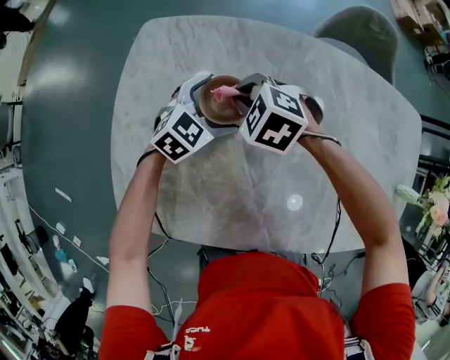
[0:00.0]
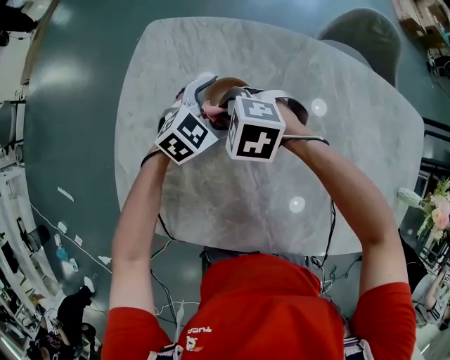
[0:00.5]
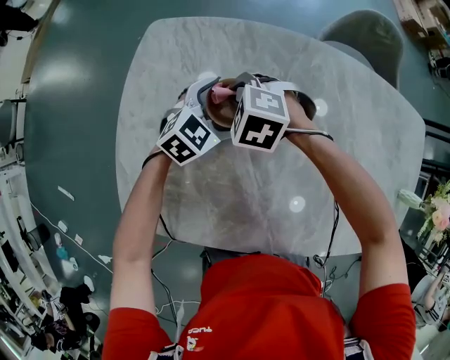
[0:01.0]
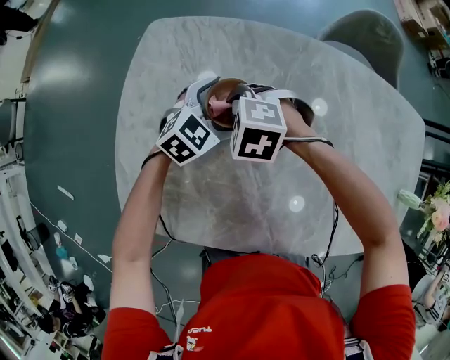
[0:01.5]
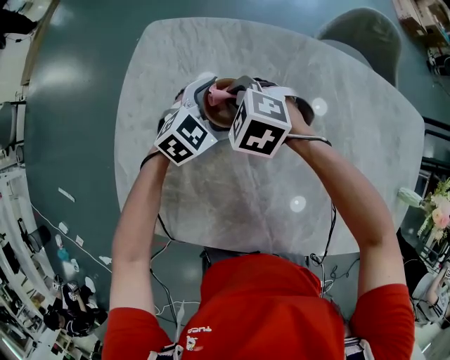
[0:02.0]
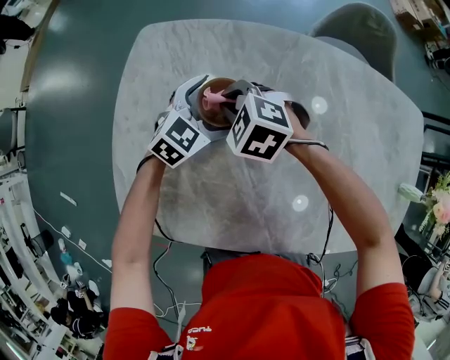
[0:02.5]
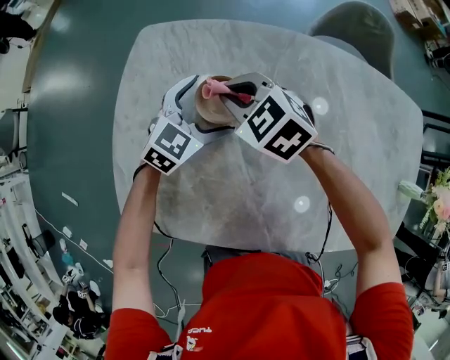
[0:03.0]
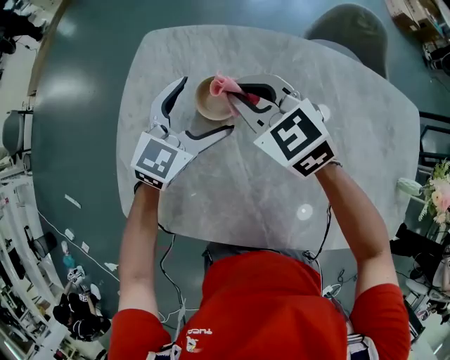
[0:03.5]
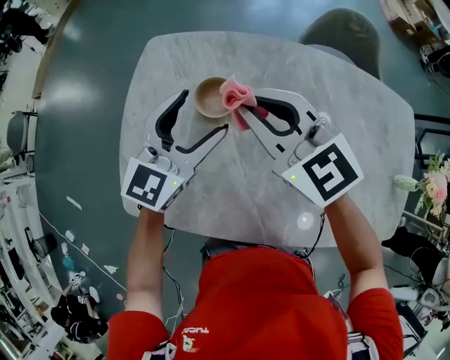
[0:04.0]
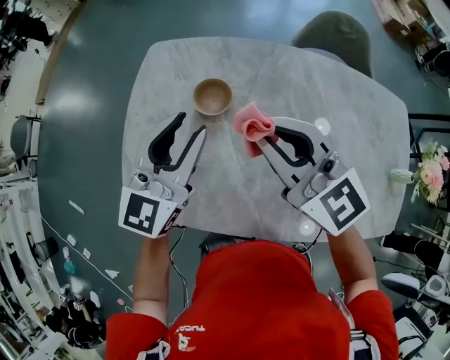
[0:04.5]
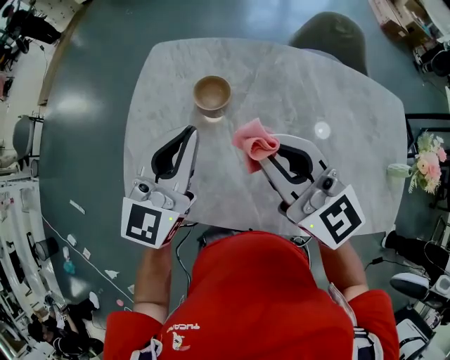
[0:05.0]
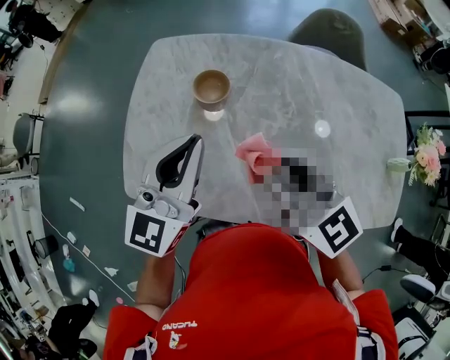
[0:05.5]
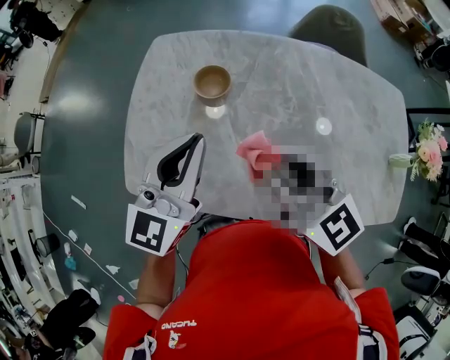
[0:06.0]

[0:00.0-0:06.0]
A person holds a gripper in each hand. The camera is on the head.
0:00.0 to 0:02.0: The grippers make only small movements.
0:02.0 to 0:04.0: Both grippers travel together upward, approximately 20 cm. The left gripper tilts its fingers about 30 degrees upward; the right gripper angles its fingers upward, by roughly 50 degrees.
0:04.0 to 0:06.0: The right gripper heads backward, covering roughly 20 cm. Meanwhile the left gripper is displaced backward and upward by some 15 cm, and closes up.

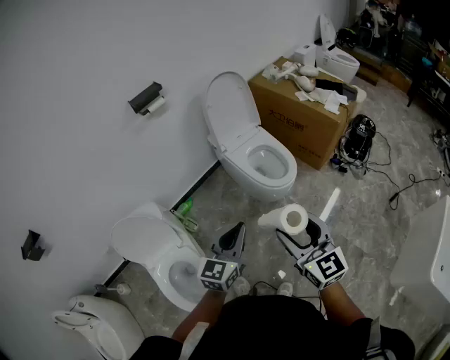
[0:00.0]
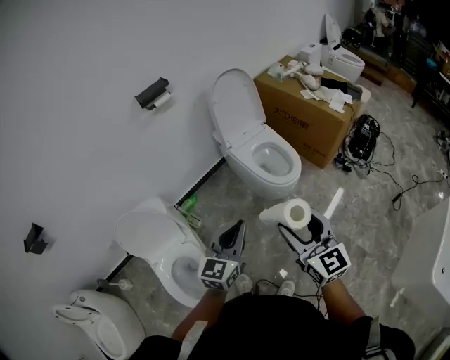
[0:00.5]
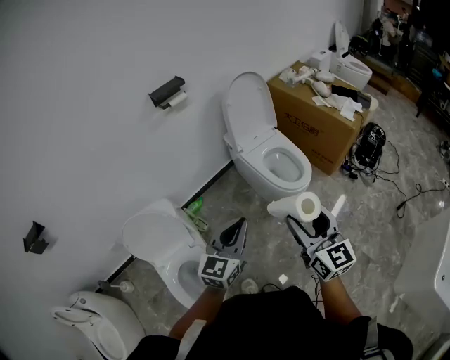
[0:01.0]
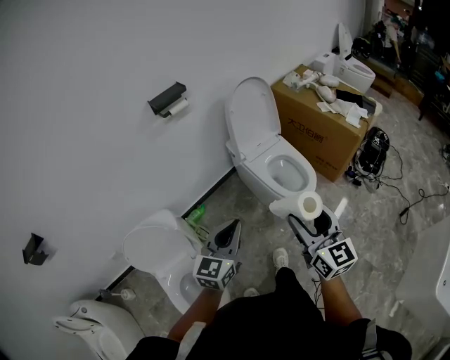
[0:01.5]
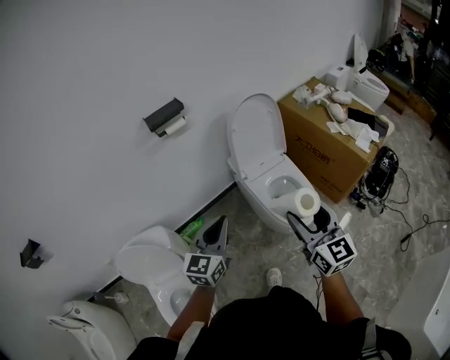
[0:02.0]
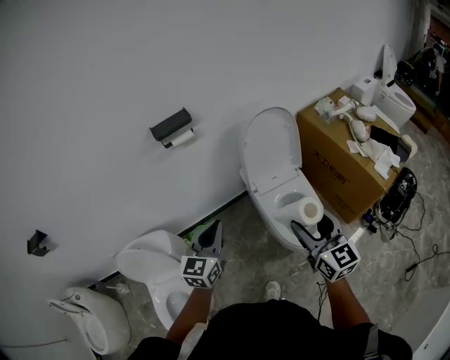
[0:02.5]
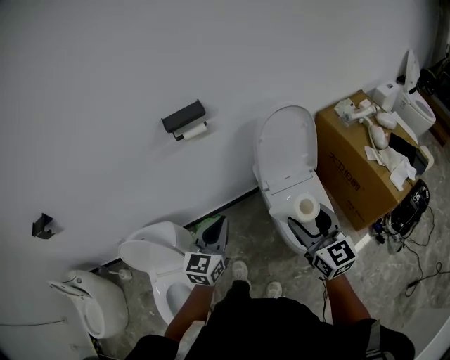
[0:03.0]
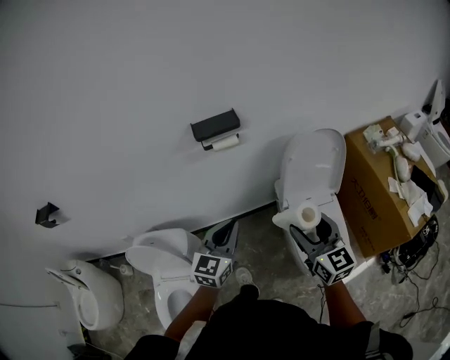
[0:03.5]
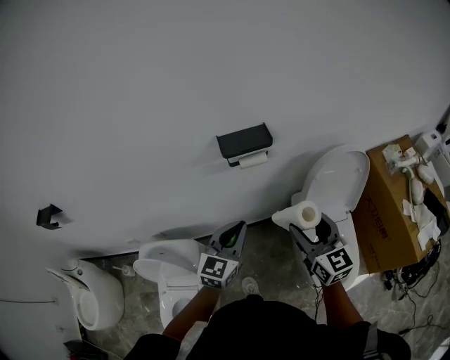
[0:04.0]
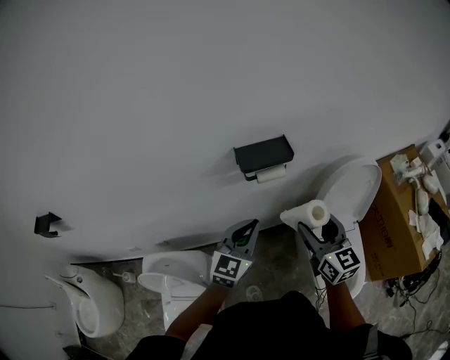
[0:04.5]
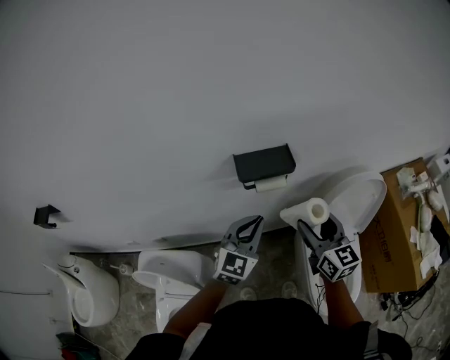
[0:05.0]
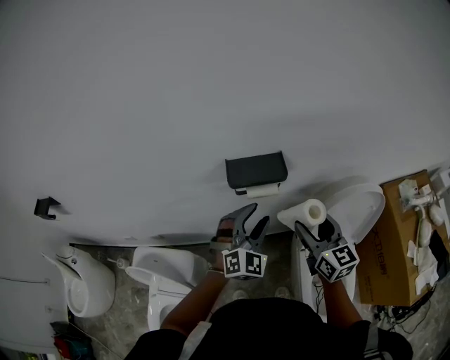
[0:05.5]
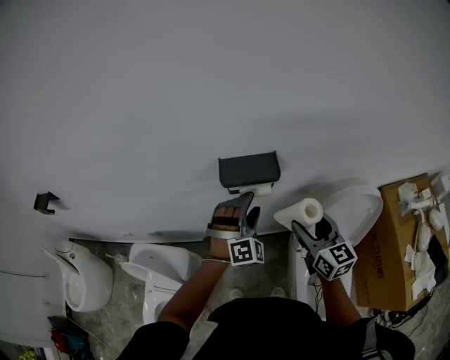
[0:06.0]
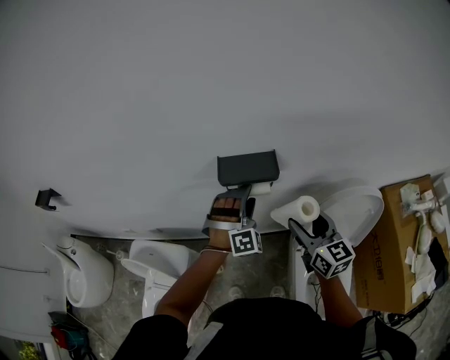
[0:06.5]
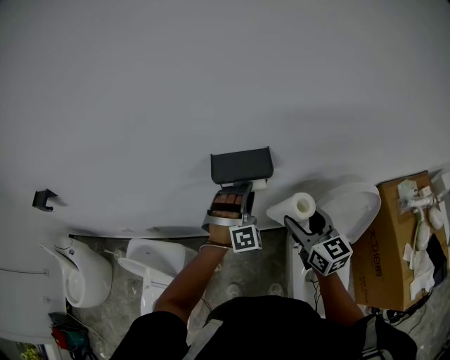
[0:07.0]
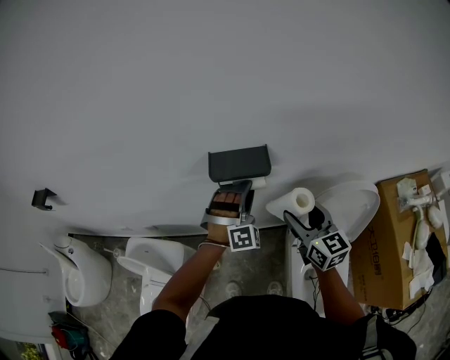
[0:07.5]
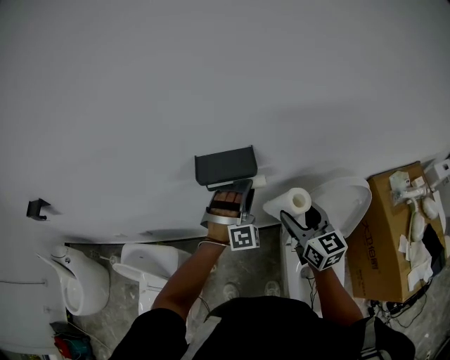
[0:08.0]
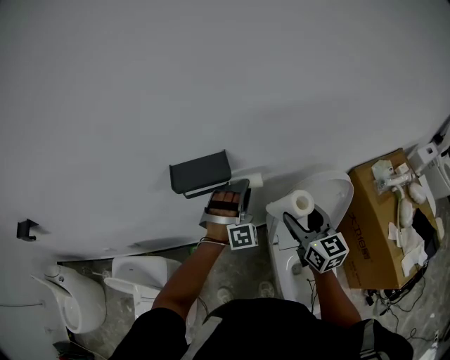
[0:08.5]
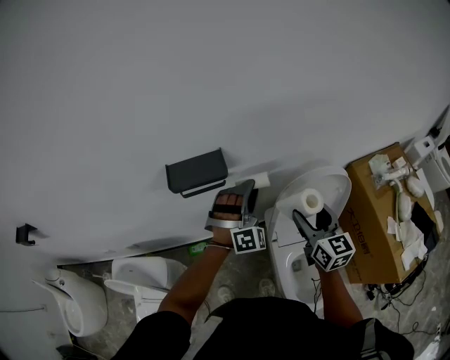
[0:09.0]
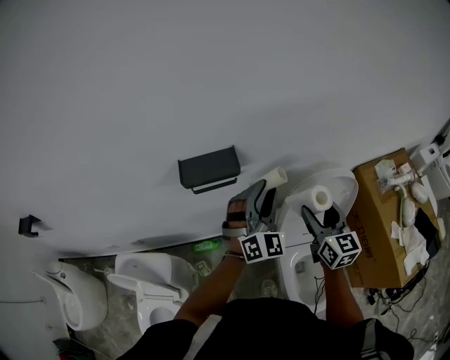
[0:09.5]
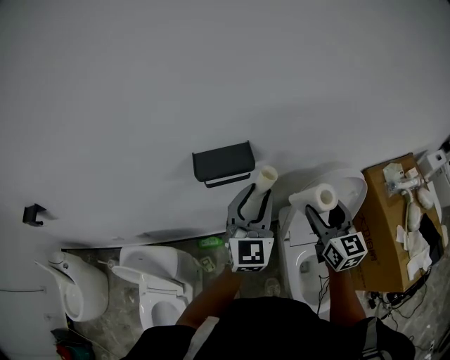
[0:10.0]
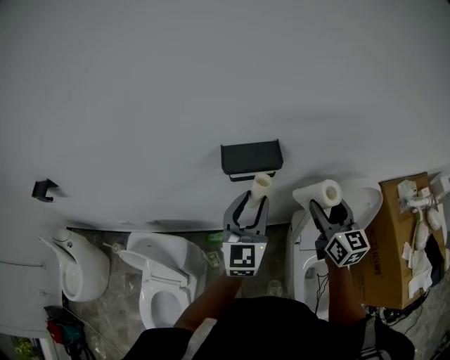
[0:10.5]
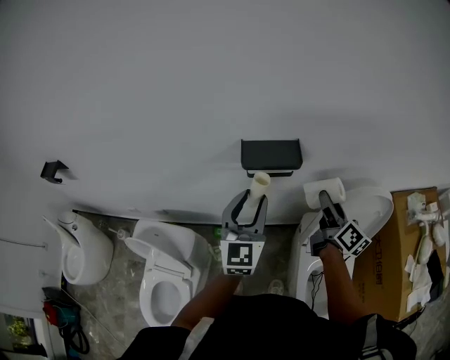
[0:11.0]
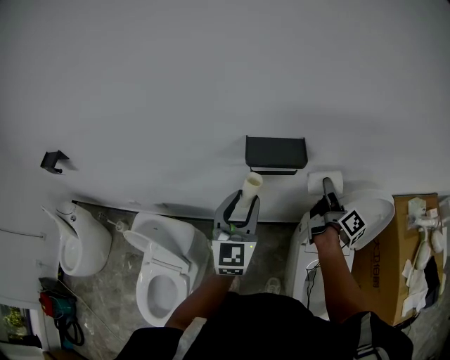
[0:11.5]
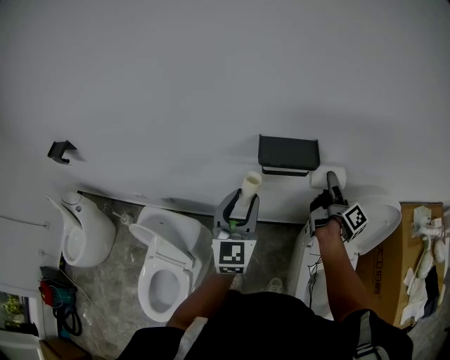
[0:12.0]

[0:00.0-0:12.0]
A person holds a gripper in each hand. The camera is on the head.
0:00.0 to 0:02.0: The left gripper shifts some 25 cm forward and to the left; the right gripper moves forward, approximately 25 cm.
0:02.0 to 0:04.0: The right gripper goes about 35 cm forward and to the left, and turns by some 30 degrees, while the left gripper travels forward by approximately 25 cm.
0:04.0 to 0:06.0: Both grippers move forward, about 15 cm. The left gripper rolls clockwise, seen from behind, by approximately 60 degrees, and opens its fingers.
0:06.0 to 0:08.0: The left gripper is displaced to the right by approximately 5 cm, and closes.
0:08.0 to 0:10.0: The right gripper goes about 5 cm to the right. Meanwhile the left gripper shifts roughly 15 cm upward and backward, and twists about 70 degrees counterclockwise, seen from behind.
0:10.0 to 0:12.0: The right gripper travels forward and to the left by approximately 15 cm, and rolls clockwise, seen from behind, by some 70 degrees; the left gripper is displaced to the left by about 20 cm, and changes its angle by roughly 20 degrees.

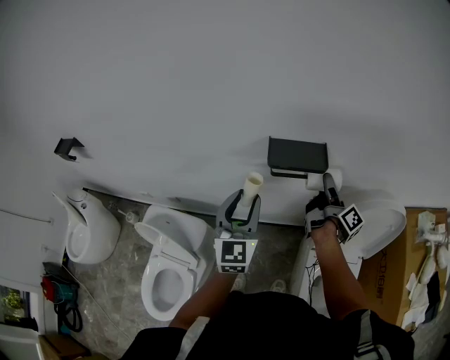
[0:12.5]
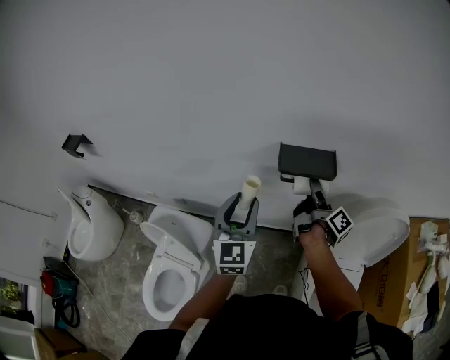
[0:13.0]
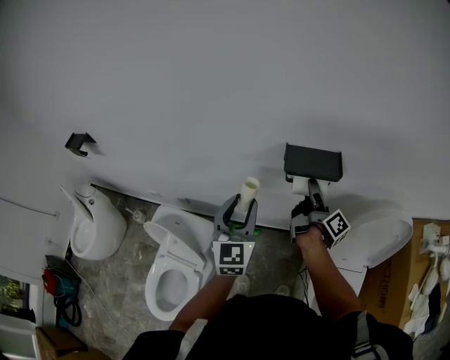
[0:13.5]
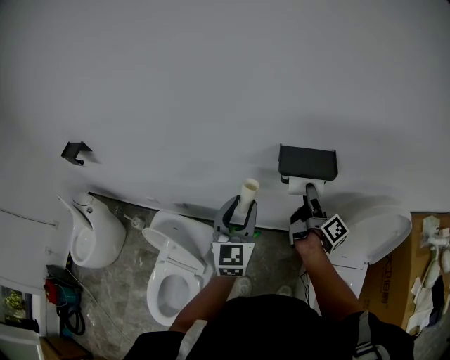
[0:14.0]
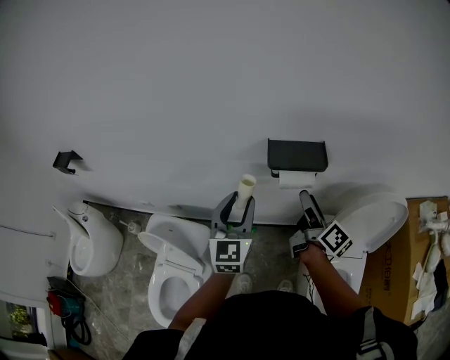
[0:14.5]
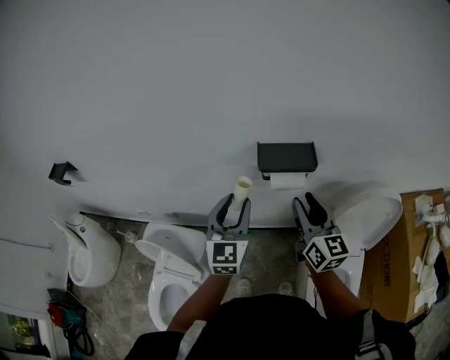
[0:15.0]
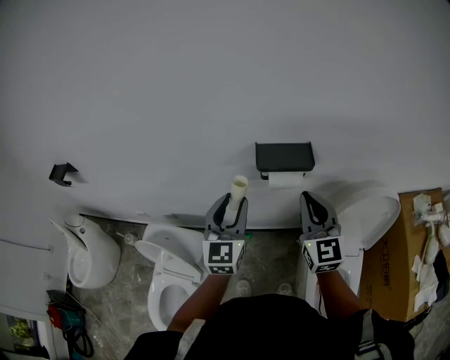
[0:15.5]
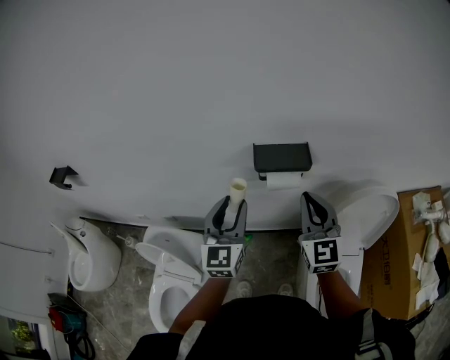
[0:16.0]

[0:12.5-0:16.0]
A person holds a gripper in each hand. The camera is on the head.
0:12.5 to 0:14.5: The right gripper is displaced to the left and backward by some 10 cm, and swivels approximately 20 degrees.
0:14.5 to 0:16.0: The right gripper goes about 10 cm upward, rotates around the line of its fingers by some 70 degrees, counterclockwise from behind, and closes up.

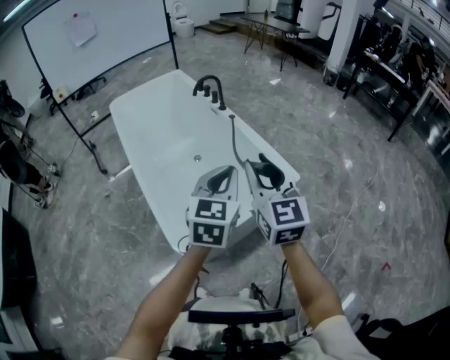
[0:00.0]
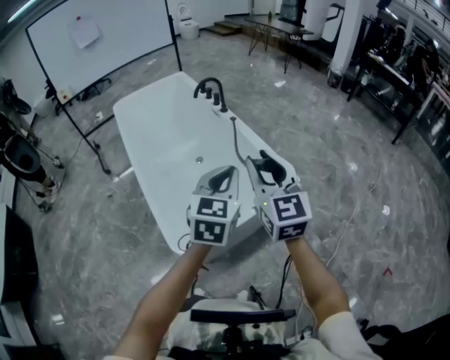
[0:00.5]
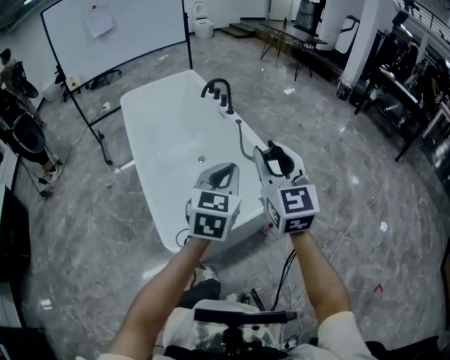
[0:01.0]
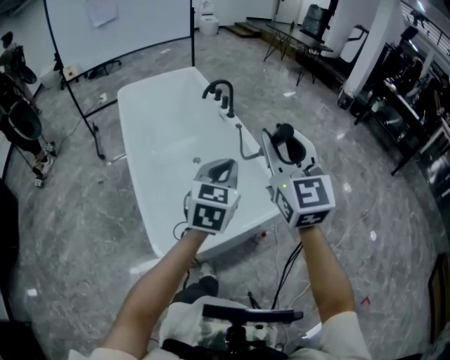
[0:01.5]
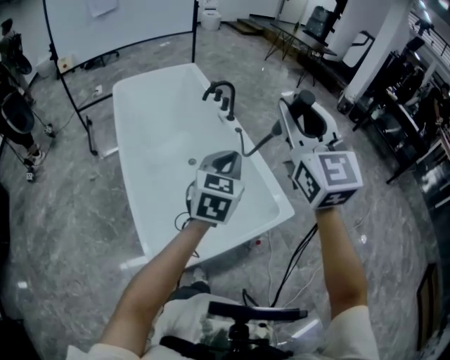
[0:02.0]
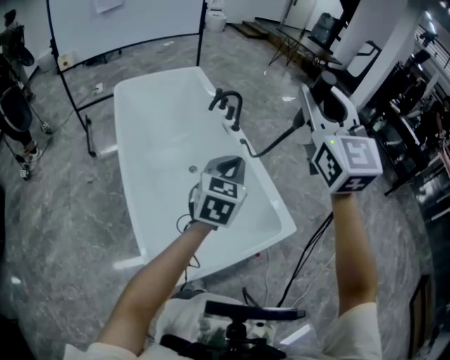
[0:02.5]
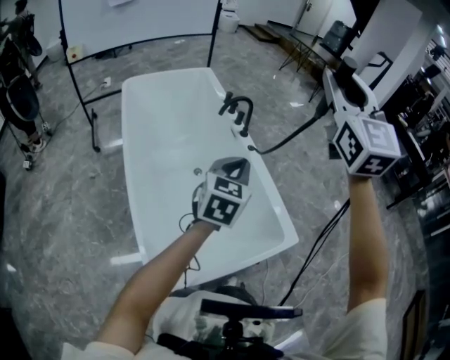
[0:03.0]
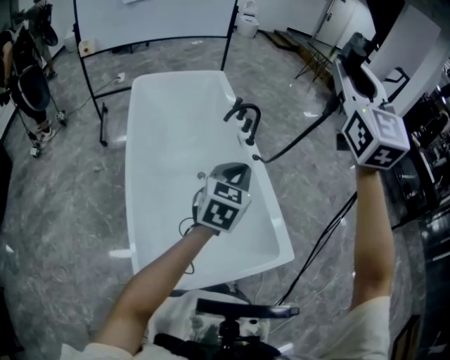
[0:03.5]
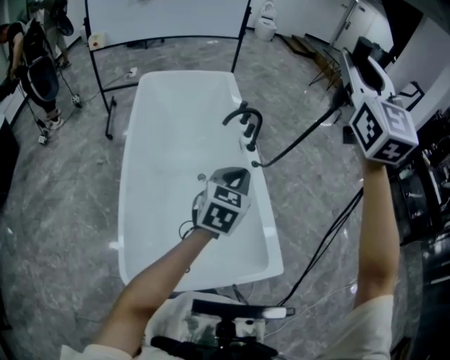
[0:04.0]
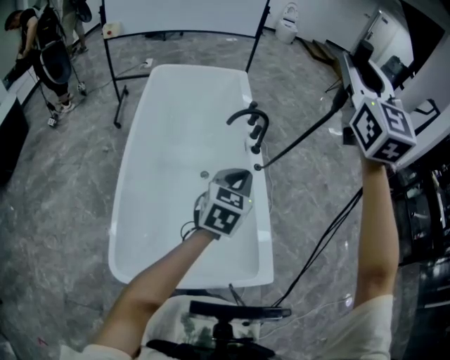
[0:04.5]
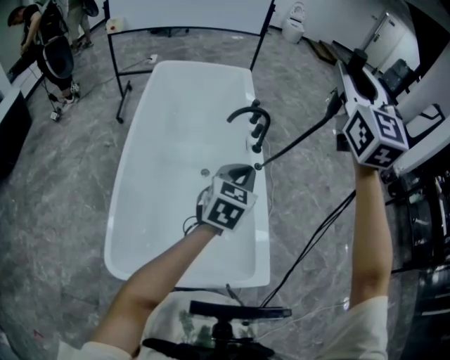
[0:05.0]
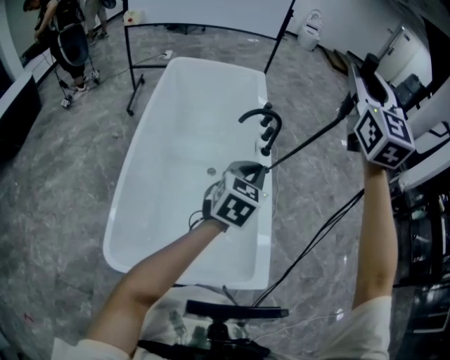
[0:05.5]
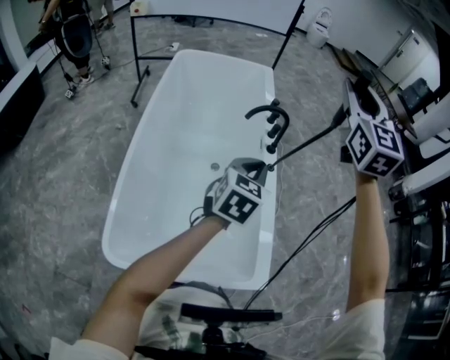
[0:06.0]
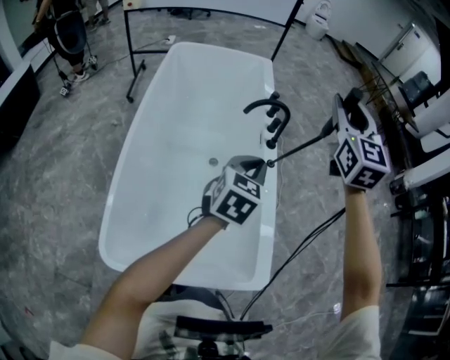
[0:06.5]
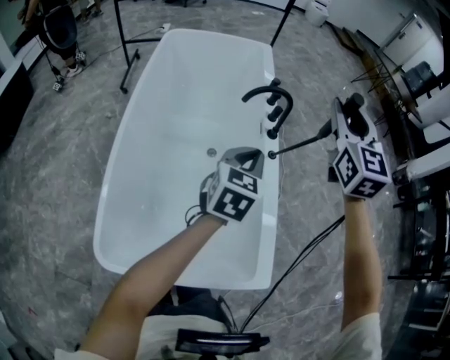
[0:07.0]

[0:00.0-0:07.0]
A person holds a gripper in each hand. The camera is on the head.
0:00.0 to 0:02.0: The right gripper travels forward and upward by roughly 25 cm. Meanwhile the left gripper heads forward, covering some 15 cm.
0:02.0 to 0:03.5: The right gripper shifts approximately 25 cm forward and upward. The left gripper shifts approximately 15 cm forward.
0:03.5 to 0:05.0: The right gripper heads forward and to the right, covering roughly 15 cm, while the left gripper is displaced to the right and forward by approximately 10 cm.
0:05.0 to 0:07.0: The right gripper shifts about 20 cm downward, while the left gripper goes about 10 cm forward and downward.
